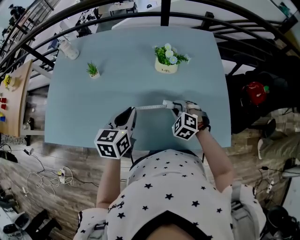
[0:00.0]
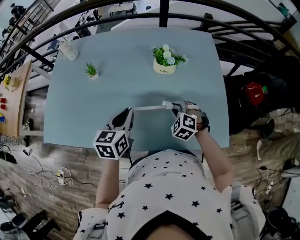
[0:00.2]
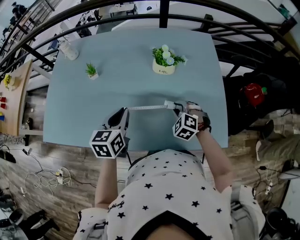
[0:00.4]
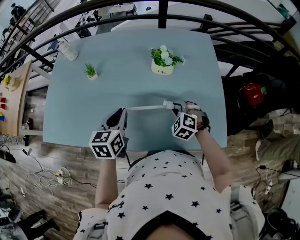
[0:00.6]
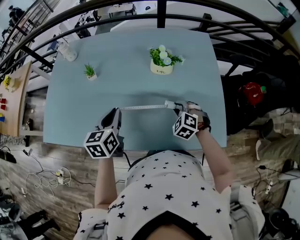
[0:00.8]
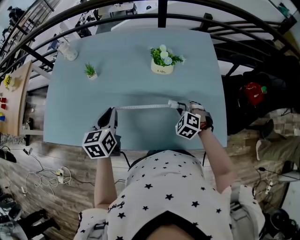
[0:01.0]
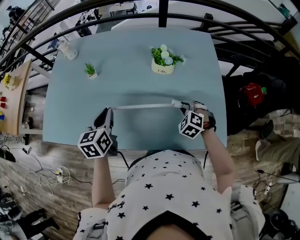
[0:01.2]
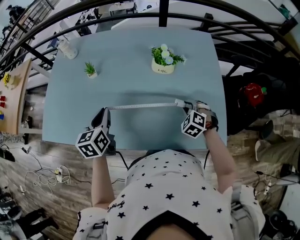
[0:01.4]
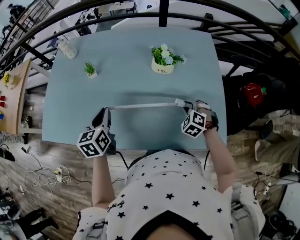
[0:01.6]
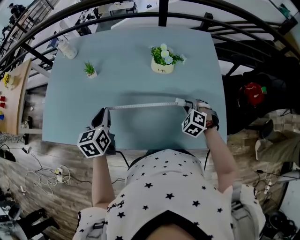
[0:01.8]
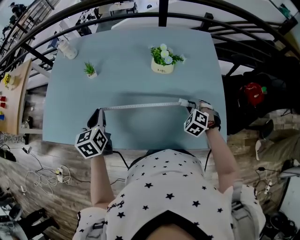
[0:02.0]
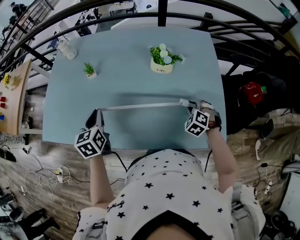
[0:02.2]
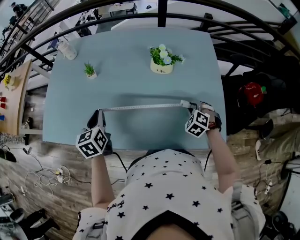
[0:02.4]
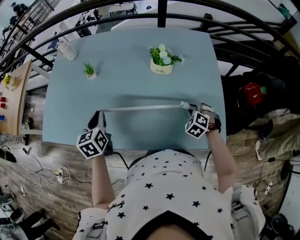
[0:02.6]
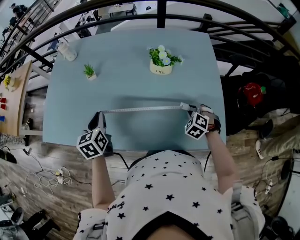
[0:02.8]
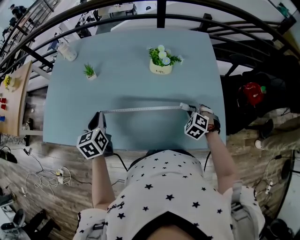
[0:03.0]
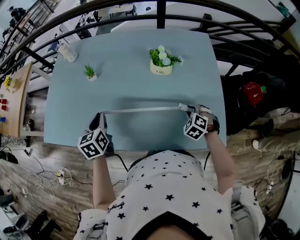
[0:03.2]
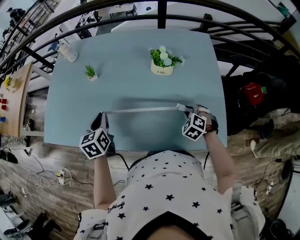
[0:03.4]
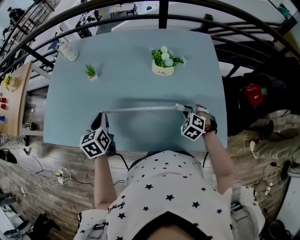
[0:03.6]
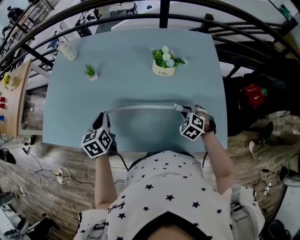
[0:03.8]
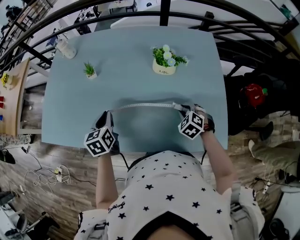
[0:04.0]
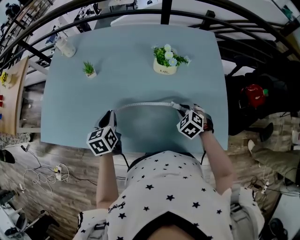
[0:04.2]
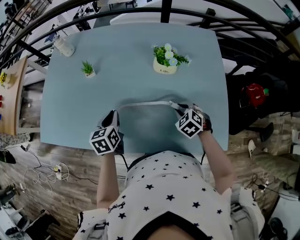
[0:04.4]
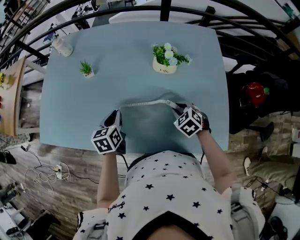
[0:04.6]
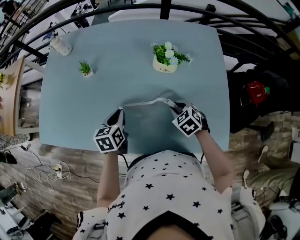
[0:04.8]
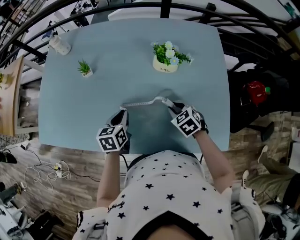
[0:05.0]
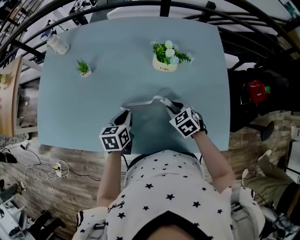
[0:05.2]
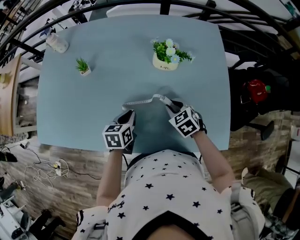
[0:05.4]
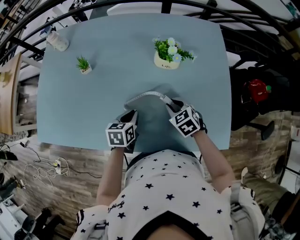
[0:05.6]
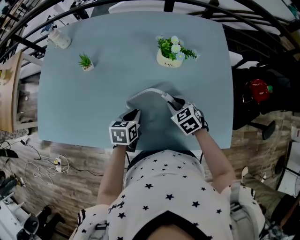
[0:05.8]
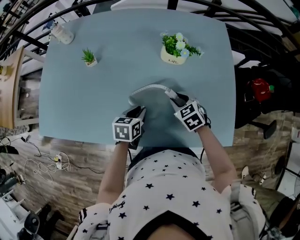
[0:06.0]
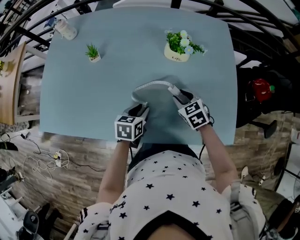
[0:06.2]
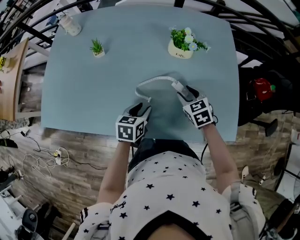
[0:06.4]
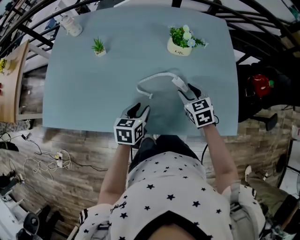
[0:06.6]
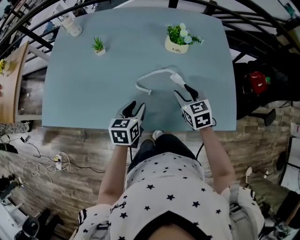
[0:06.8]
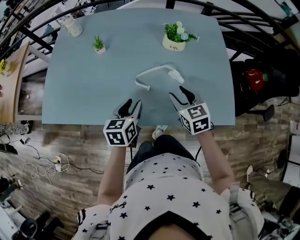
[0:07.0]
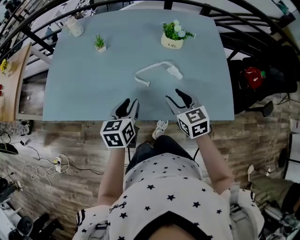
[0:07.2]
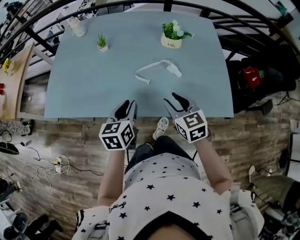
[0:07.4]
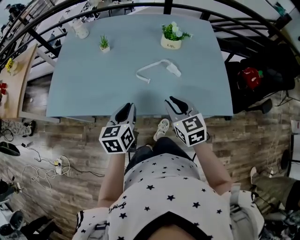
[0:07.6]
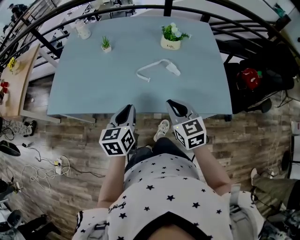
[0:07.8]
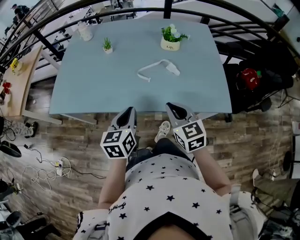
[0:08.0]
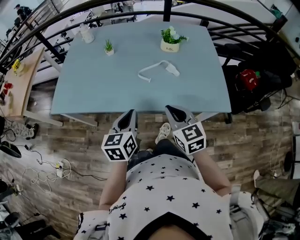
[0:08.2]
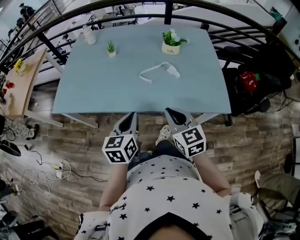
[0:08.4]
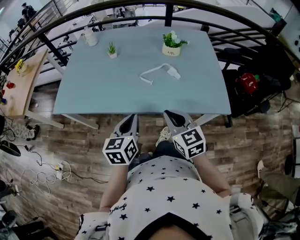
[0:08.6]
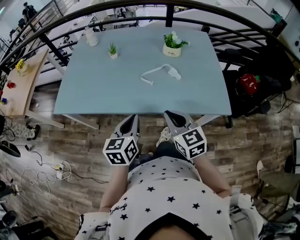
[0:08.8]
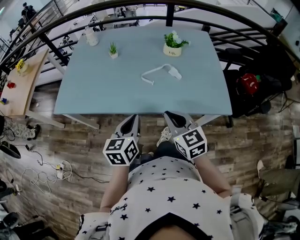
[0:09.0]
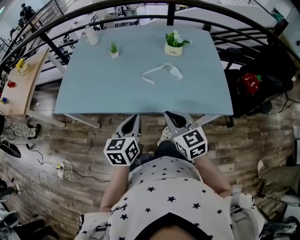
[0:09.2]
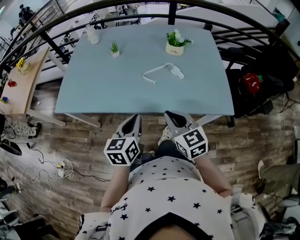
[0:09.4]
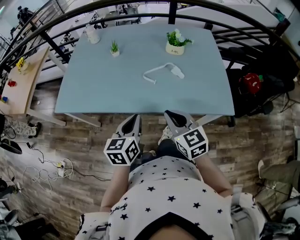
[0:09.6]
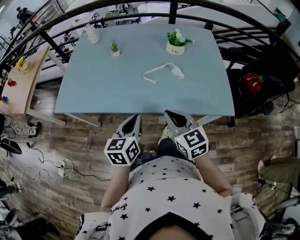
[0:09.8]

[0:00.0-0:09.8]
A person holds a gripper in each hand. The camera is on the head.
0:00.0 to 0:01.4: The right gripper shifts some 10 cm to the right; the left gripper is displaced to the left by some 10 cm.
0:01.4 to 0:02.8: The grippers make only small movements.
0:02.8 to 0:04.2: The left gripper is displaced downward by about 5 cm. The right gripper heads to the left, covering roughly 5 cm.
0:04.2 to 0:05.6: The left gripper heads to the right and downward, covering about 15 cm, and swivels about 20 degrees, while the right gripper shifts roughly 5 cm to the left, and turns by about 20 degrees.
0:05.6 to 0:07.0: The left gripper moves backward, upward and to the left, about 15 cm, and opens up. Meanwhile the right gripper goes some 15 cm backward and upward, and swivels roughly 20 degrees.
0:07.0 to 0:08.4: Both grippers move backward and upward, some 20 cm. The right gripper closes up, while the left gripper closes its fingers.
0:08.4 to 0:09.8: The grippers stay close to where they were, moving slightly.

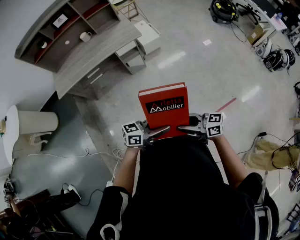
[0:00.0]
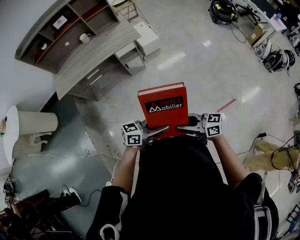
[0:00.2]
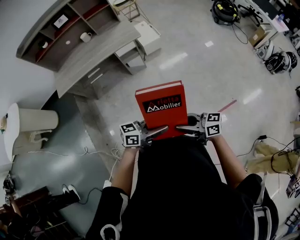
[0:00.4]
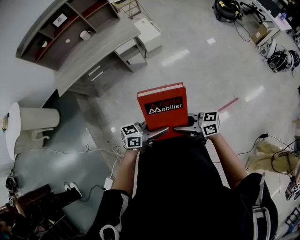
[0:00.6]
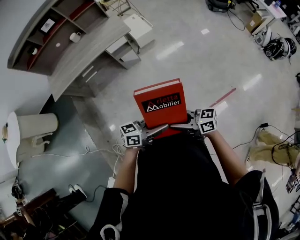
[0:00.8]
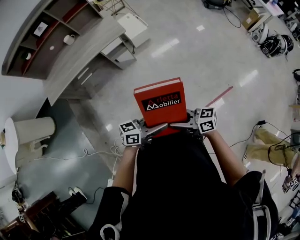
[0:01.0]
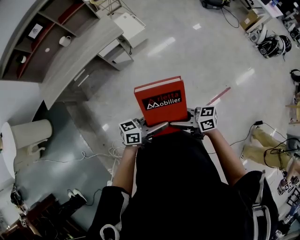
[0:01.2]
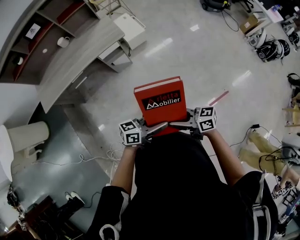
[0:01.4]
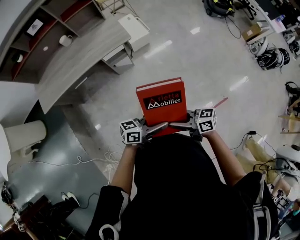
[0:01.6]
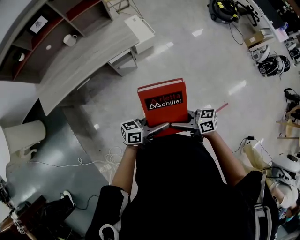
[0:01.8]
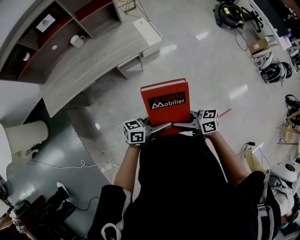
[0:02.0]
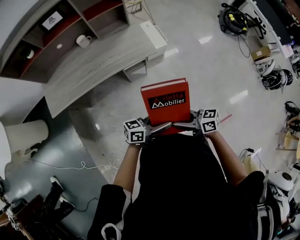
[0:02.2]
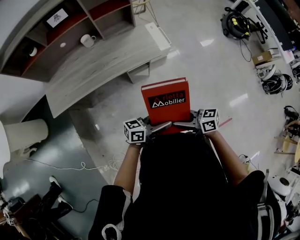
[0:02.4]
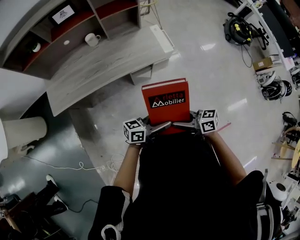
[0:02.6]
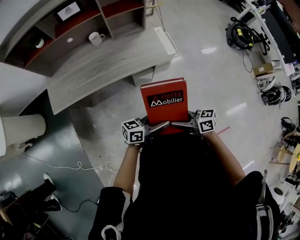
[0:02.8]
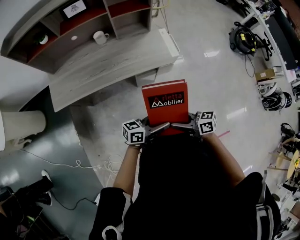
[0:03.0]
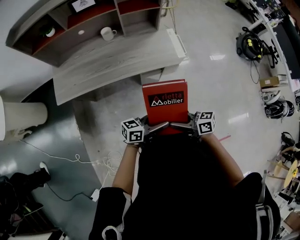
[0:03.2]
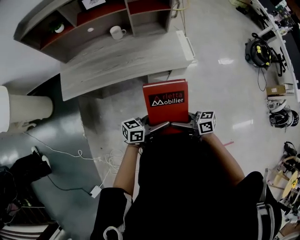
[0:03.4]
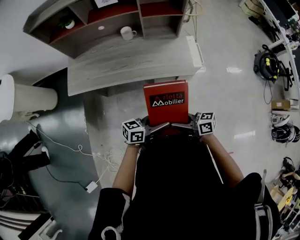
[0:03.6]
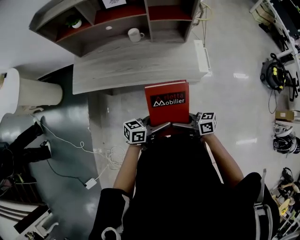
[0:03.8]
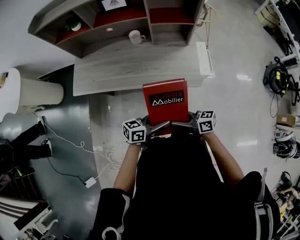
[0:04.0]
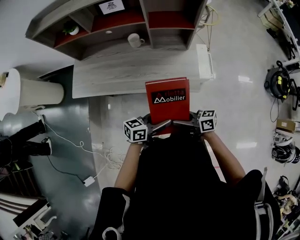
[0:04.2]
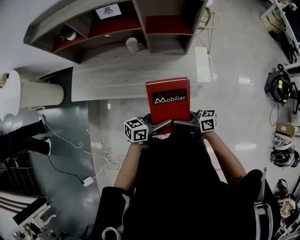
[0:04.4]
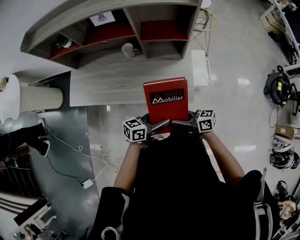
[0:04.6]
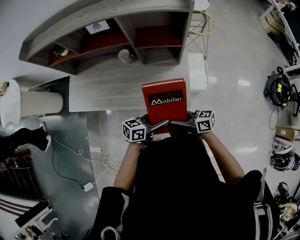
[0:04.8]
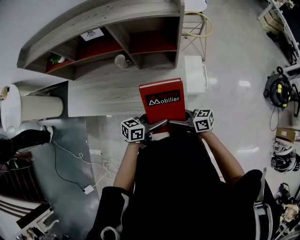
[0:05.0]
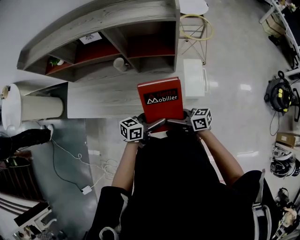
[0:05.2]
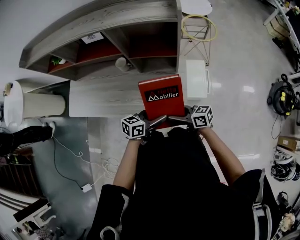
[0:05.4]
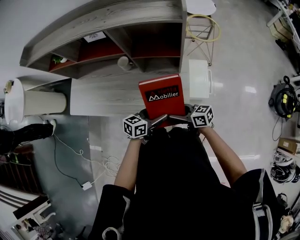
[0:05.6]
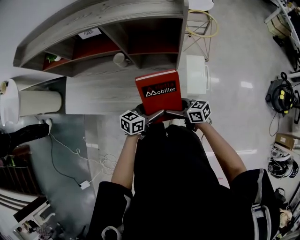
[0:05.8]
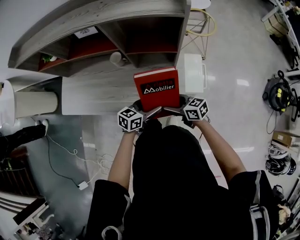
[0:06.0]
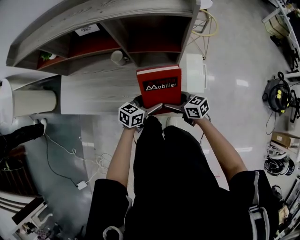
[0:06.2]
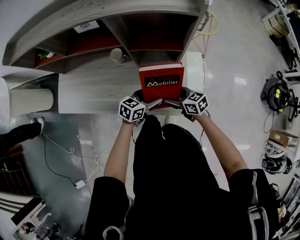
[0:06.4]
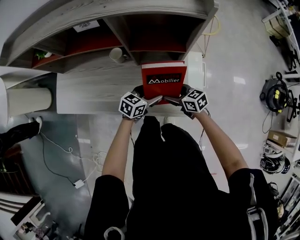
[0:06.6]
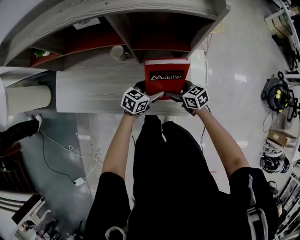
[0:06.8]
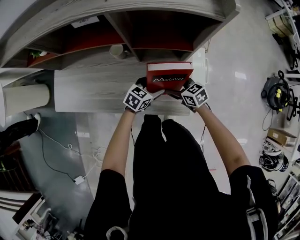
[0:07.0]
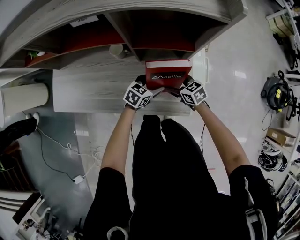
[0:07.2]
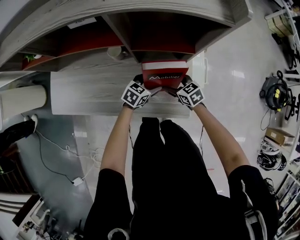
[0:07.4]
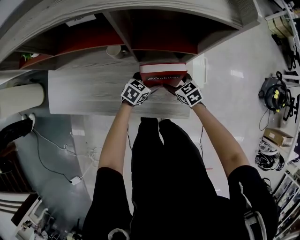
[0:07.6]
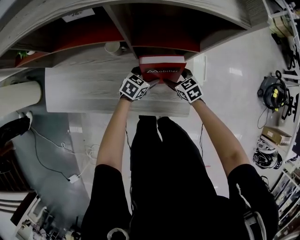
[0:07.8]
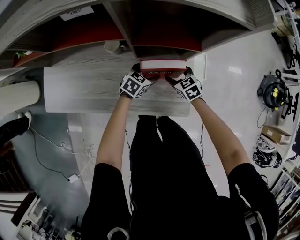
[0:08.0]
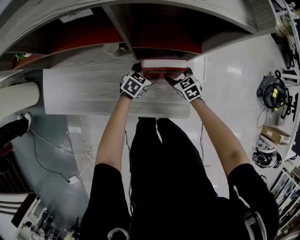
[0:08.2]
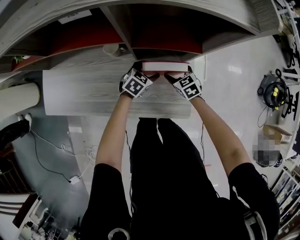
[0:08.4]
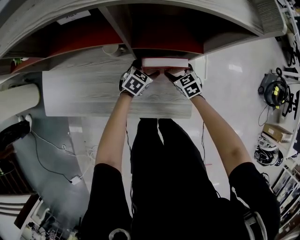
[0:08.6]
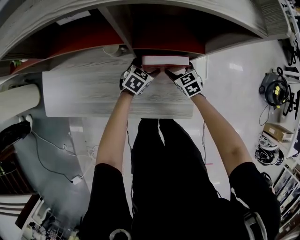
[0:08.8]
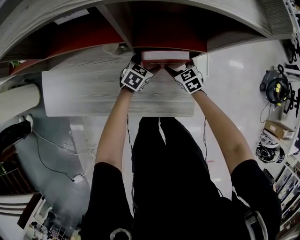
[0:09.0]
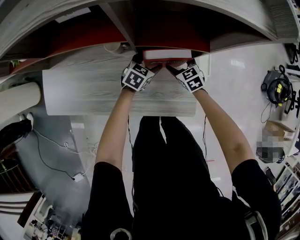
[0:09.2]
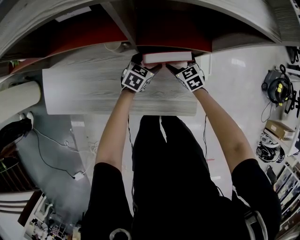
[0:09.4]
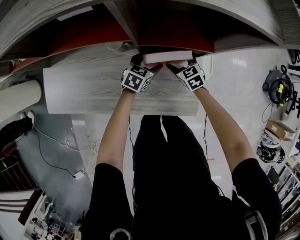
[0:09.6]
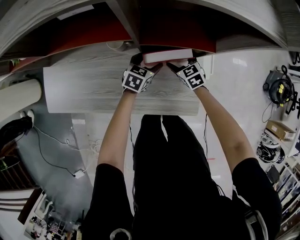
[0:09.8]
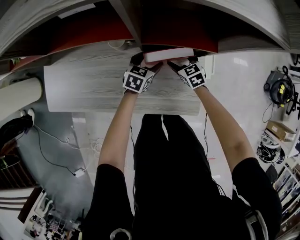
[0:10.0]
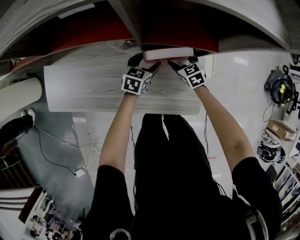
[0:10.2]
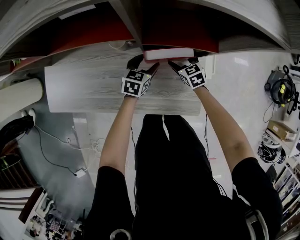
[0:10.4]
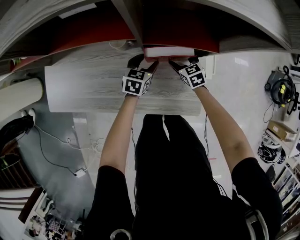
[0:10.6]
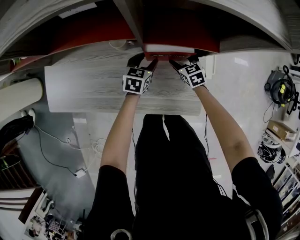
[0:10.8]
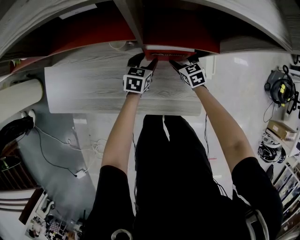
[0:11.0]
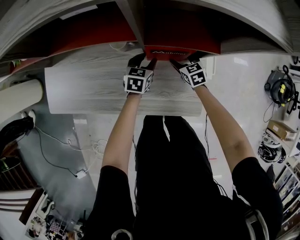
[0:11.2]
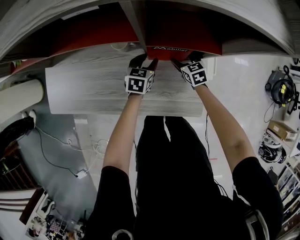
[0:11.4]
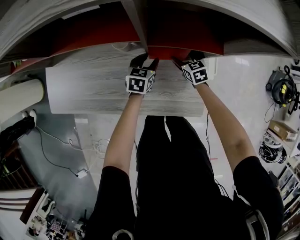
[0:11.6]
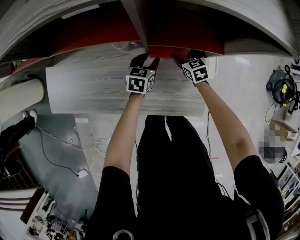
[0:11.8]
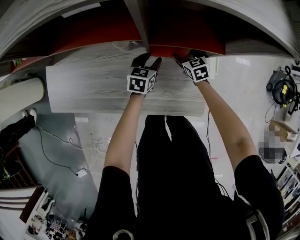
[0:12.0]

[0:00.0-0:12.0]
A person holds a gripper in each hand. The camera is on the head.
0:00.0 to 0:01.6: The right gripper changes place by roughly 20 cm, while the left gripper changes place by approximately 20 cm.
0:01.6 to 0:03.0: The left gripper moves roughly 30 cm. Meanwhile the right gripper moves about 30 cm.
0:03.0 to 0:04.4: The right gripper moves approximately 25 cm, while the left gripper moves approximately 25 cm, and changes its angle by about 20 degrees.
0:04.4 to 0:06.0: The right gripper ends up about 25 cm from where it was, and turns by roughly 20 degrees, while the left gripper changes place by approximately 25 cm.
0:06.0 to 0:07.6: The left gripper moves roughly 20 cm, and changes its angle by about 20 degrees. The right gripper ends up about 20 cm from where it was, and changes its angle by roughly 30 degrees.
0:07.6 to 0:09.0: Both grippers travel together forward, approximately 10 cm.
0:09.0 to 0:10.4: The left gripper shifts roughly 5 cm to the left.
0:10.4 to 0:12.0: The left gripper closes.

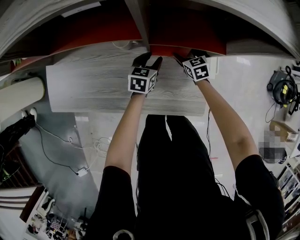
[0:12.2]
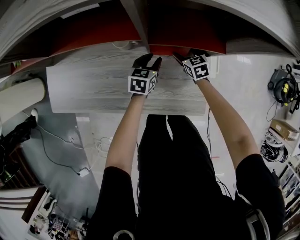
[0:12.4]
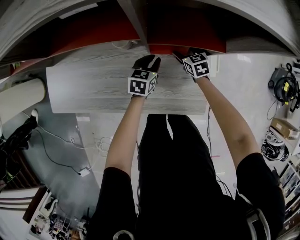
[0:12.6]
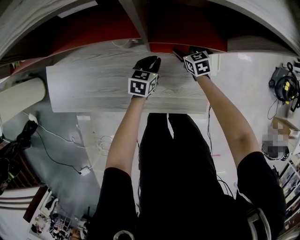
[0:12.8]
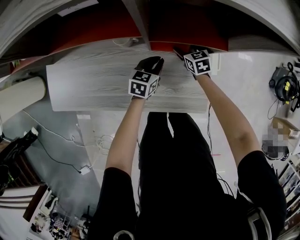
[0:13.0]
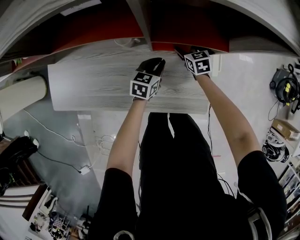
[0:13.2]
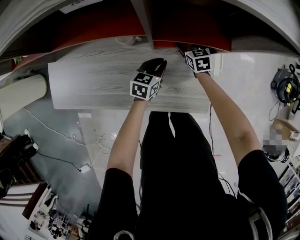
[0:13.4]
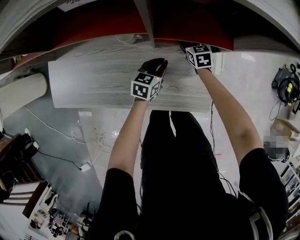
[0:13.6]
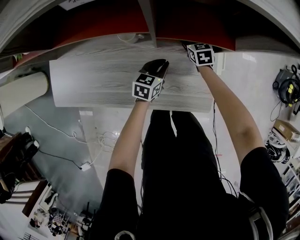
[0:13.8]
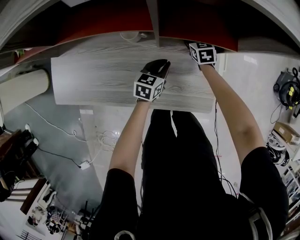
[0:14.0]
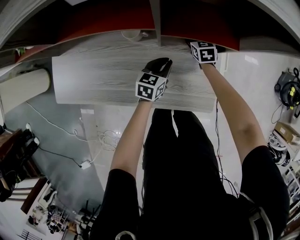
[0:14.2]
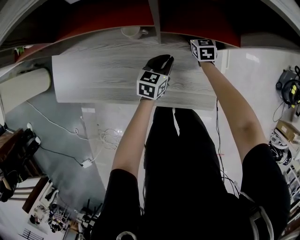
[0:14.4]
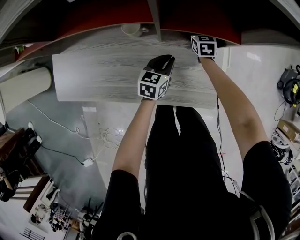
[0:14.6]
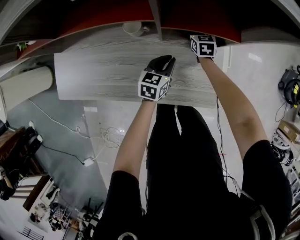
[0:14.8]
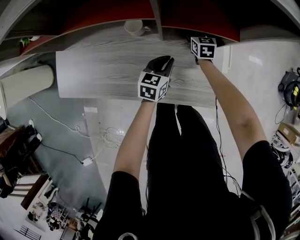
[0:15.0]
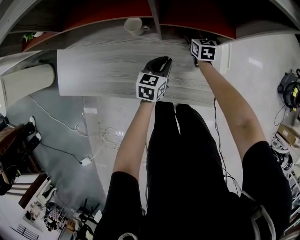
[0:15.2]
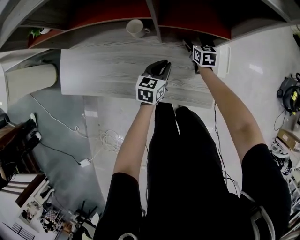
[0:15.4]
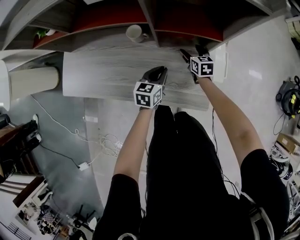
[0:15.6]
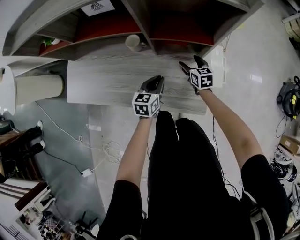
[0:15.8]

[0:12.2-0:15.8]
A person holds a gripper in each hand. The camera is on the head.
0:12.2 to 0:14.0: The left gripper goes about 5 cm backward, and closes up. The right gripper shifts about 5 cm forward.
0:14.0 to 0:15.8: The two grippers go about 15 cm backward and upward.
